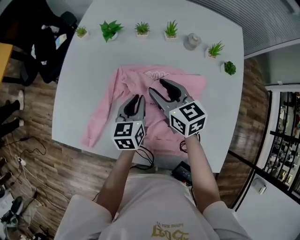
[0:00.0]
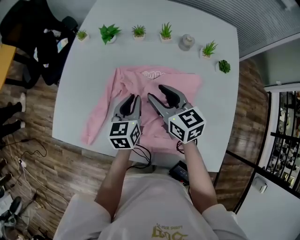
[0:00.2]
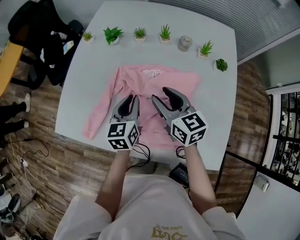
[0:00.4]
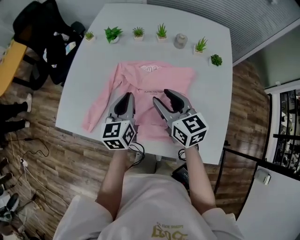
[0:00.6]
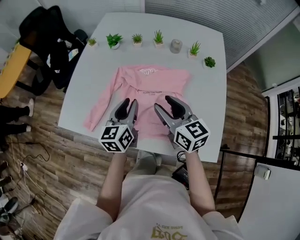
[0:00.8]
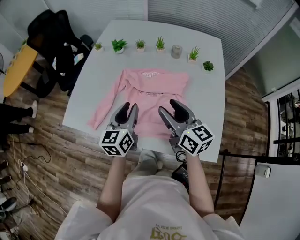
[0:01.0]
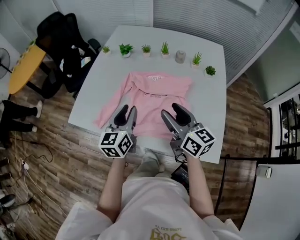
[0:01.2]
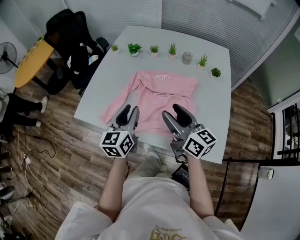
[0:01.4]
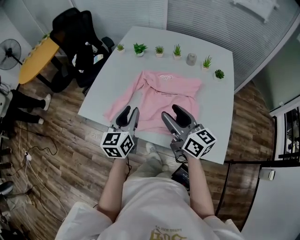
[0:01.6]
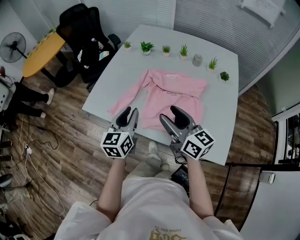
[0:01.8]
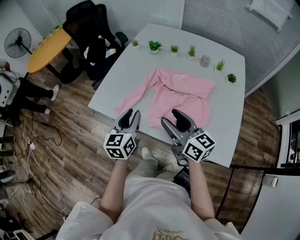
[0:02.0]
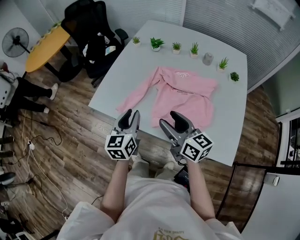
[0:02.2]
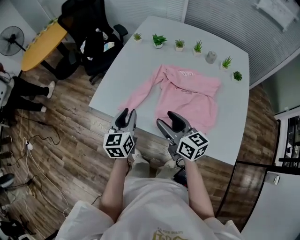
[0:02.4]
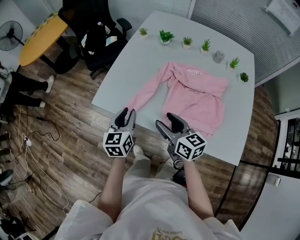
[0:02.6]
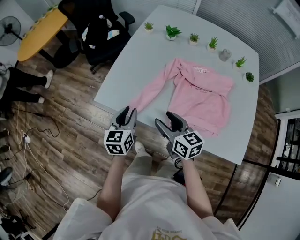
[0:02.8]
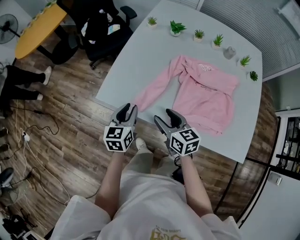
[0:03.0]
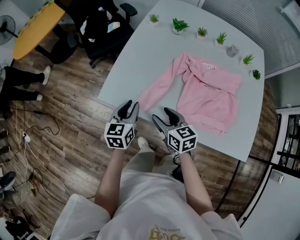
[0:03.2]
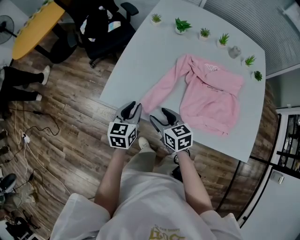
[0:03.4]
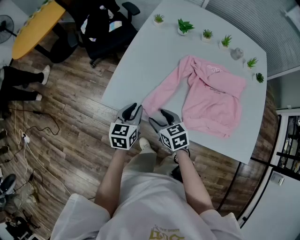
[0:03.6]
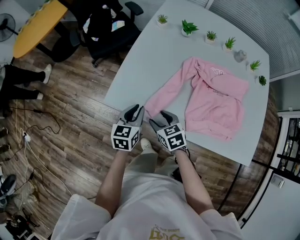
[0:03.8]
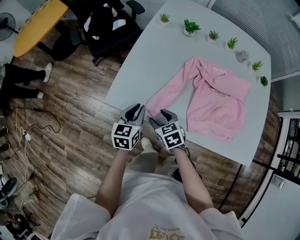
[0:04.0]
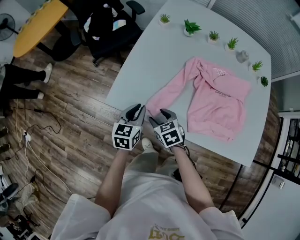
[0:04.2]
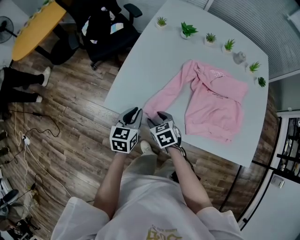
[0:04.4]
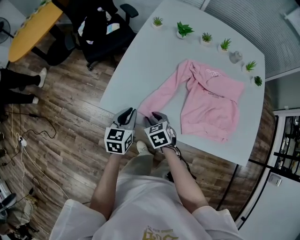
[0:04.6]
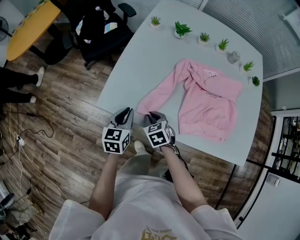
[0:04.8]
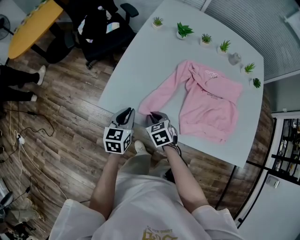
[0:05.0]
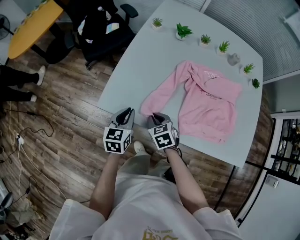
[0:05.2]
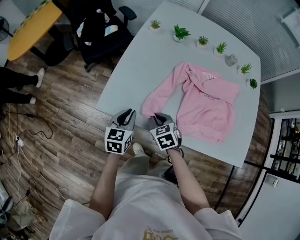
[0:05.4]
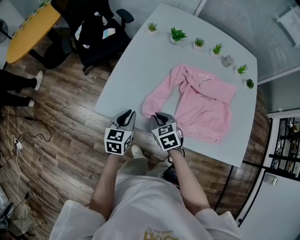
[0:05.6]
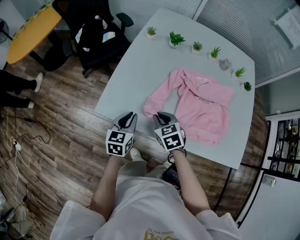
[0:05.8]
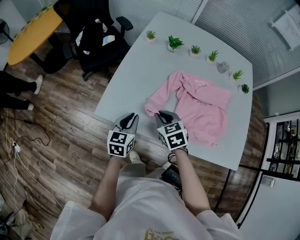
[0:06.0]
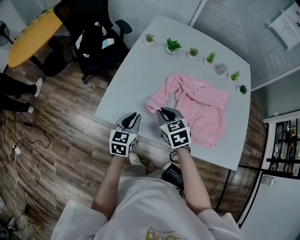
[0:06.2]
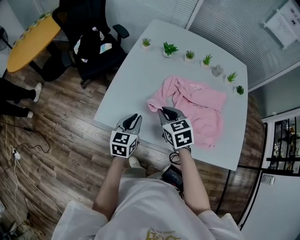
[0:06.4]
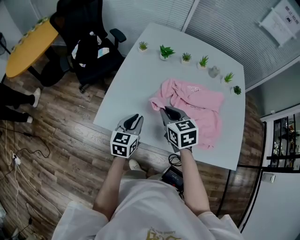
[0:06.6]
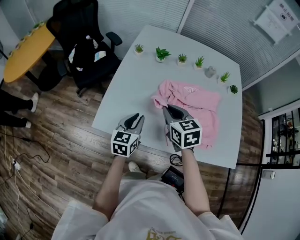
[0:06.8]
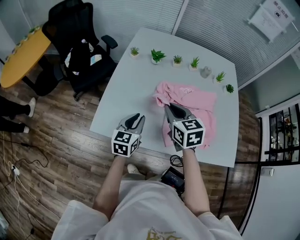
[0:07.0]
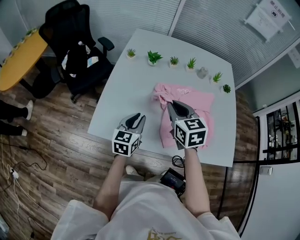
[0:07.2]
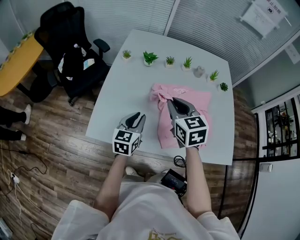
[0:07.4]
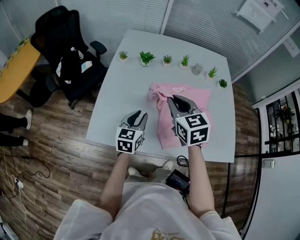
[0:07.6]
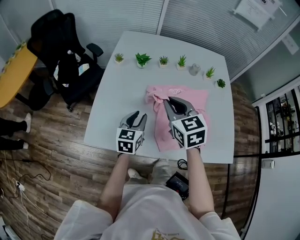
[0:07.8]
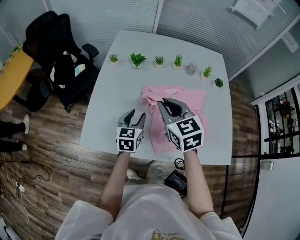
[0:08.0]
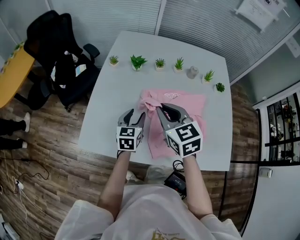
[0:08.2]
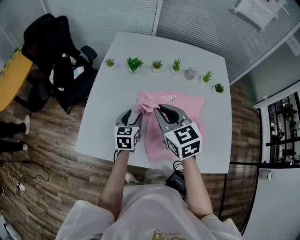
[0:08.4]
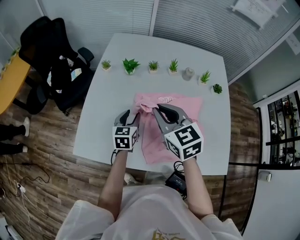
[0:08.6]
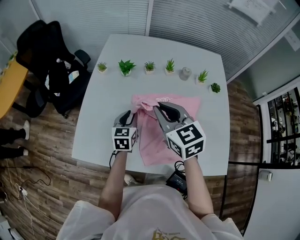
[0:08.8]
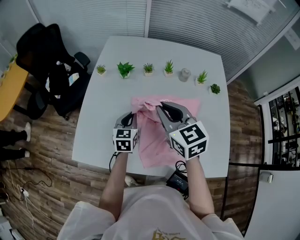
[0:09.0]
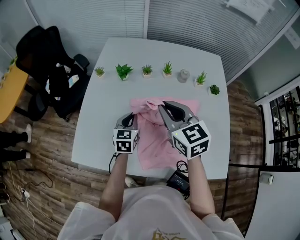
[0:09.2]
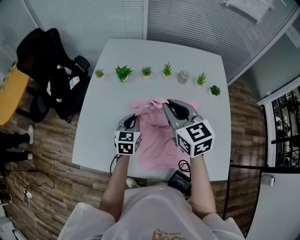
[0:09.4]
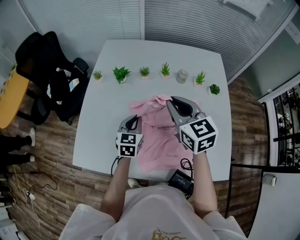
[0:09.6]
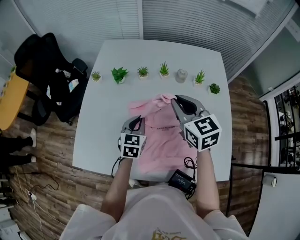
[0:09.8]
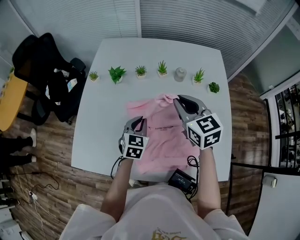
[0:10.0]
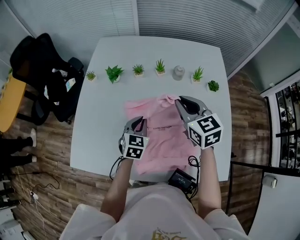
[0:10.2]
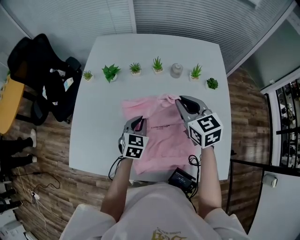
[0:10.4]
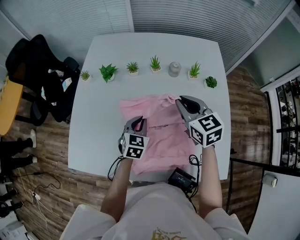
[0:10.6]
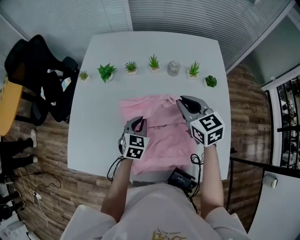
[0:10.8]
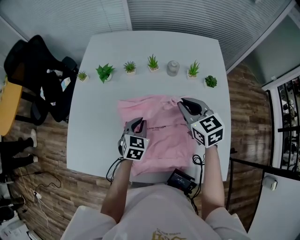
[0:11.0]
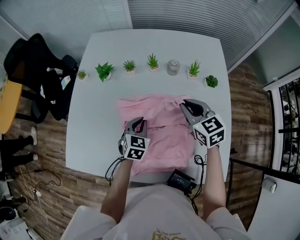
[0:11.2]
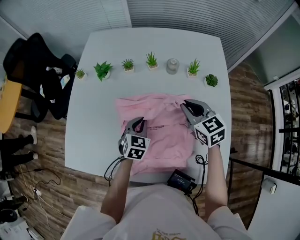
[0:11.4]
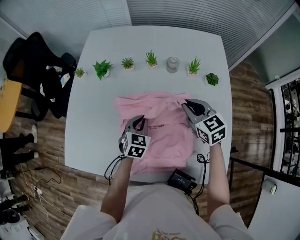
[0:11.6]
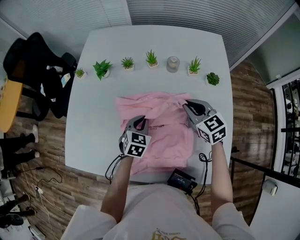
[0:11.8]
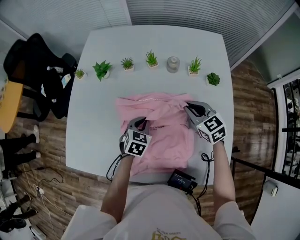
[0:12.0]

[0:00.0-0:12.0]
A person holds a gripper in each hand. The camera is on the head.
0:00.0 to 0:01.6: The right gripper goes approximately 30 cm backward and upward, and rotates about 30 degrees. The left gripper heads backward, upward and to the left, covering some 30 cm.
0:01.6 to 0:03.0: Both grippers move to the left and downward, about 25 cm. The right gripper swivels approximately 30 degrees.
0:03.0 to 0:04.4: The right gripper goes some 15 cm downward, to the left and forward, and rotates some 30 degrees. Meanwhile the left gripper moves downward, approximately 5 cm.
0:04.4 to 0:06.0: The right gripper travels upward and to the right by roughly 15 cm, and closes up.
0:06.0 to 0:07.6: The right gripper moves upward and to the right, approximately 20 cm, and changes its angle by roughly 30 degrees; the left gripper shifts about 15 cm to the right, forward and upward.
0:07.6 to 0:09.0: The left gripper goes roughly 15 cm forward and to the right. Meanwhile the right gripper heads to the right and forward, covering some 10 cm.
0:09.0 to 0:10.4: The grippers both shift to the right by roughly 15 cm.
0:10.4 to 0:12.0: The right gripper moves downward and to the right, some 15 cm. Meanwhile the left gripper goes approximately 5 cm downward.

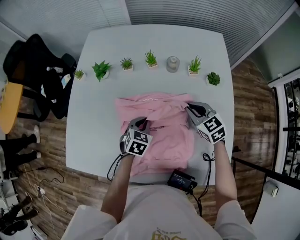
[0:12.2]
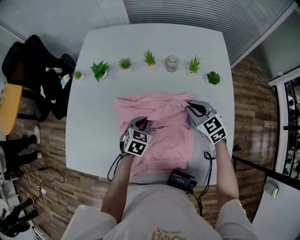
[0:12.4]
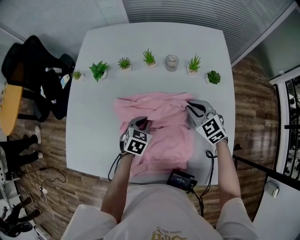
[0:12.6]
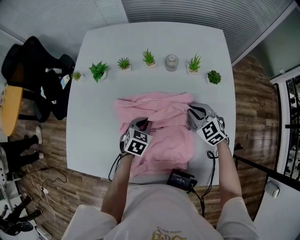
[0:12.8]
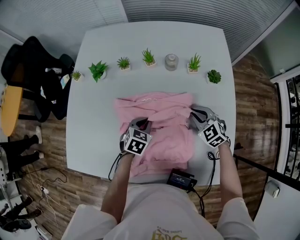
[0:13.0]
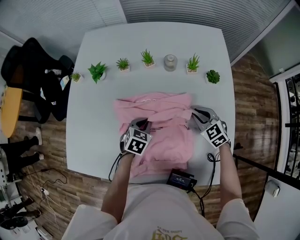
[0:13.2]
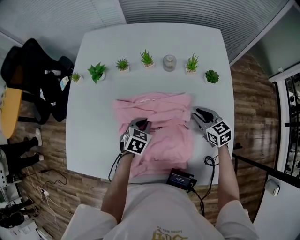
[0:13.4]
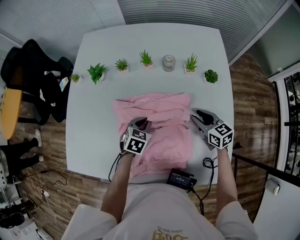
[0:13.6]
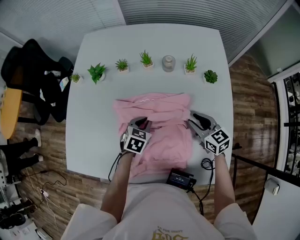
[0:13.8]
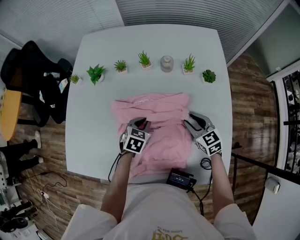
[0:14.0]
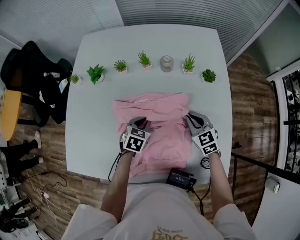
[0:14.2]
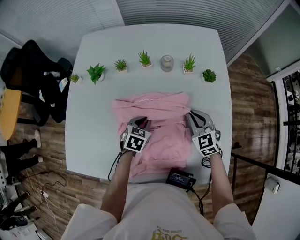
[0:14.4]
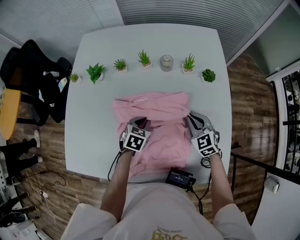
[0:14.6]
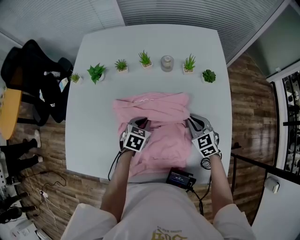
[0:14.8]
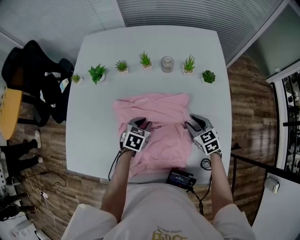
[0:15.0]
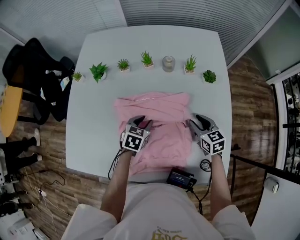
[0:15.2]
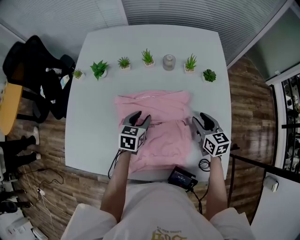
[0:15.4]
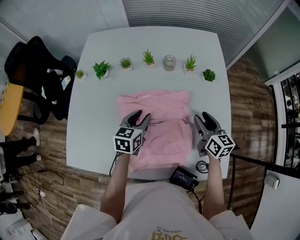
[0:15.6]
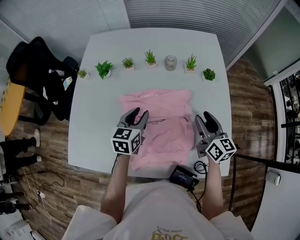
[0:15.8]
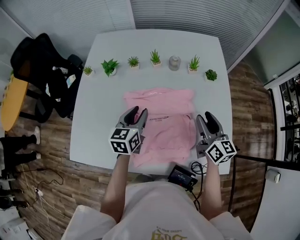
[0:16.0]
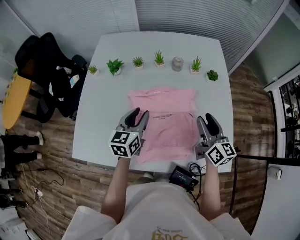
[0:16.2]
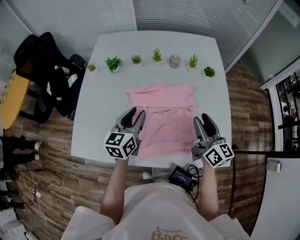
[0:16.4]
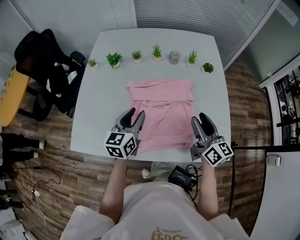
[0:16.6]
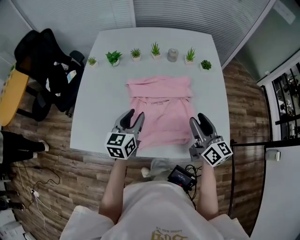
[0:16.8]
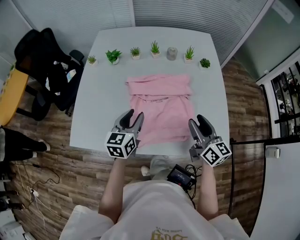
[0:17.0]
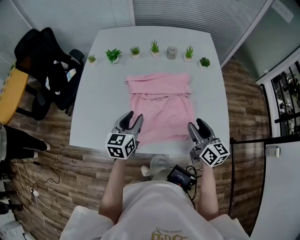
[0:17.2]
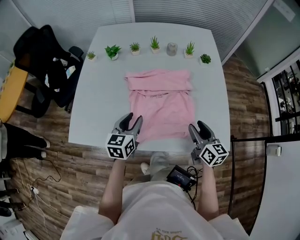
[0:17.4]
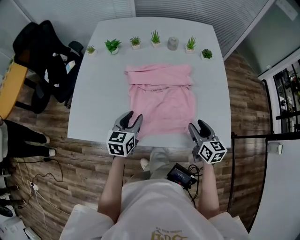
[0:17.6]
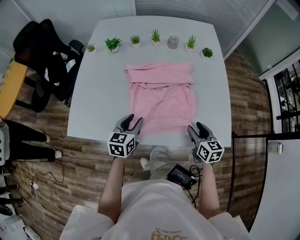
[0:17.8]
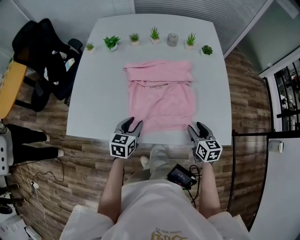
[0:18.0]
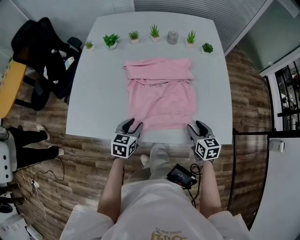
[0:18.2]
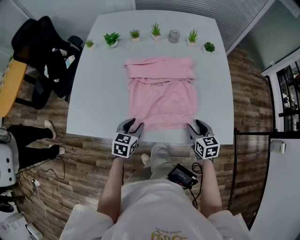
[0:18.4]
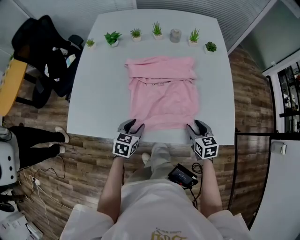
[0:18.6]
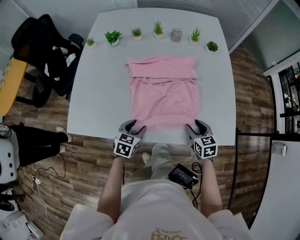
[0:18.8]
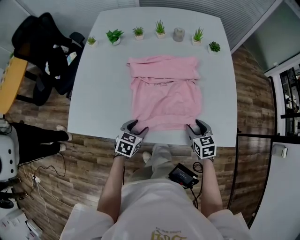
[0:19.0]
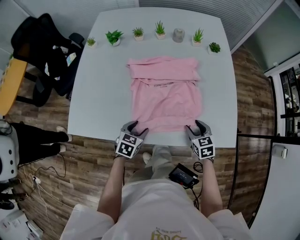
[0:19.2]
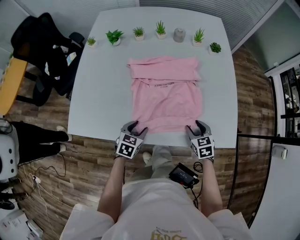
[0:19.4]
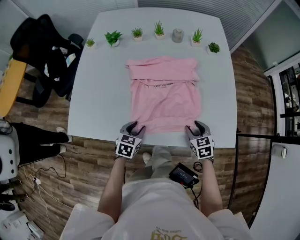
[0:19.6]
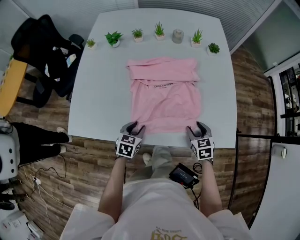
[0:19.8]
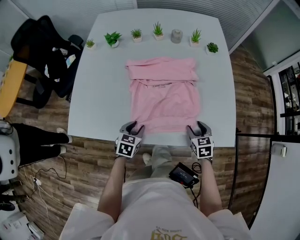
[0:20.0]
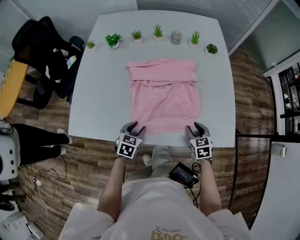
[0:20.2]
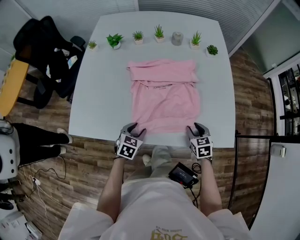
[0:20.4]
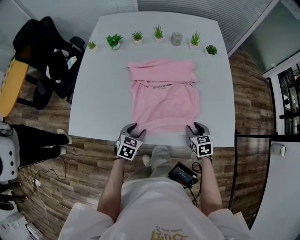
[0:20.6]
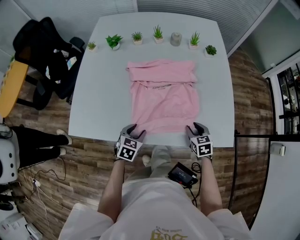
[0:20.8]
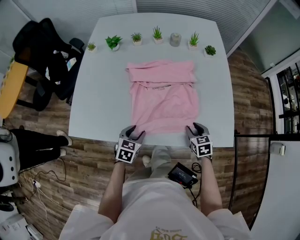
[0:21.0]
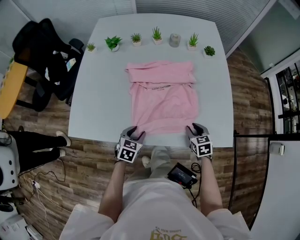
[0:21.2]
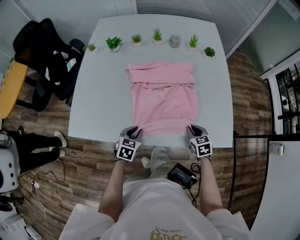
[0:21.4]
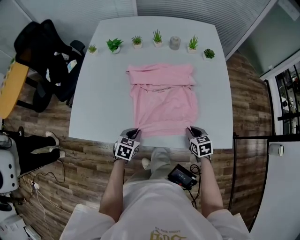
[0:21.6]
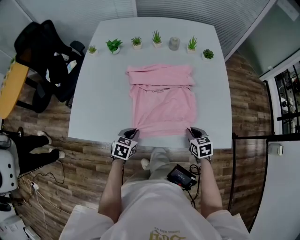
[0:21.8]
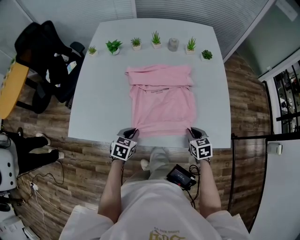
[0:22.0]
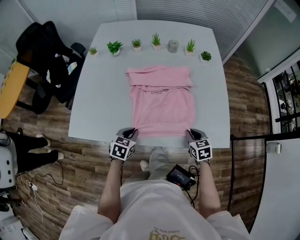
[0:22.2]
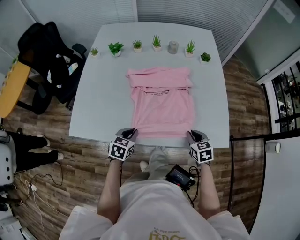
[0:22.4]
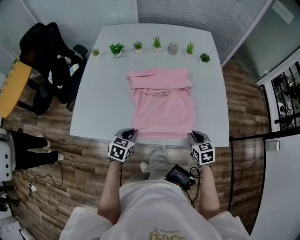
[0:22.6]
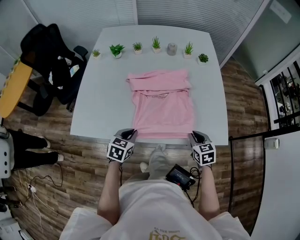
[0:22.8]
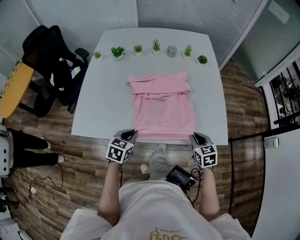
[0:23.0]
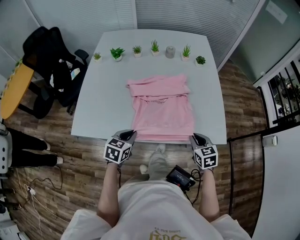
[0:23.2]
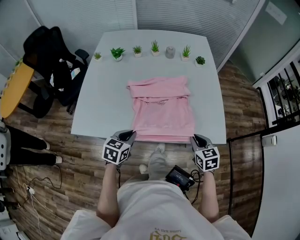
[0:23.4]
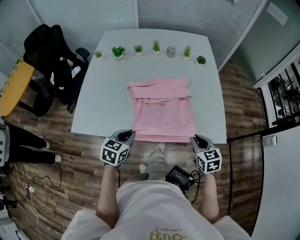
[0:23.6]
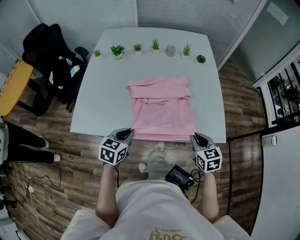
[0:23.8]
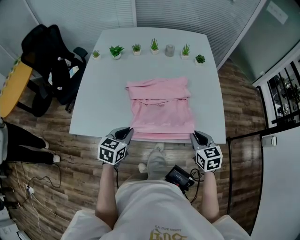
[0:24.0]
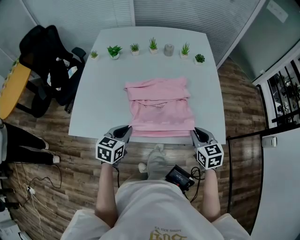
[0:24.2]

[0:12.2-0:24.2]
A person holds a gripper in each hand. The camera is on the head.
0:12.2 to 0:13.8: The right gripper heads backward, covering approximately 5 cm.
0:15.2 to 0:16.6: The left gripper heads upward, backward and to the left, covering approximately 20 cm, and angles its fingers upward, by roughly 30 degrees, while the right gripper travels upward and backward by some 25 cm, and points its fingers some 30 degrees further upward.
0:16.6 to 0:18.2: Both grippers move downward and backward, approximately 20 cm. The left gripper swivels about 20 degrees, while the right gripper points its fingers roughly 30 degrees further downward.
0:18.2 to 0:21.2: The grippers move only a little.
0:21.2 to 0:22.6: The two grippers go approximately 5 cm upward. The left gripper closes up.
0:22.6 to 0:24.2: The grippers both shift upward by about 10 cm.
